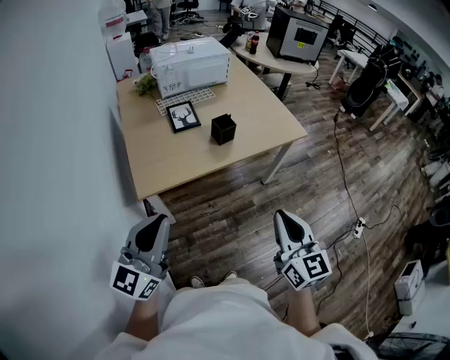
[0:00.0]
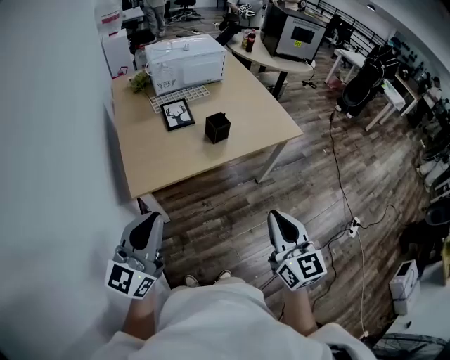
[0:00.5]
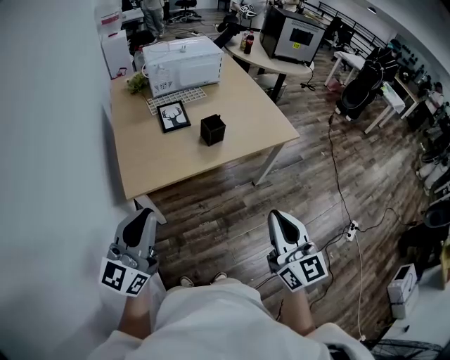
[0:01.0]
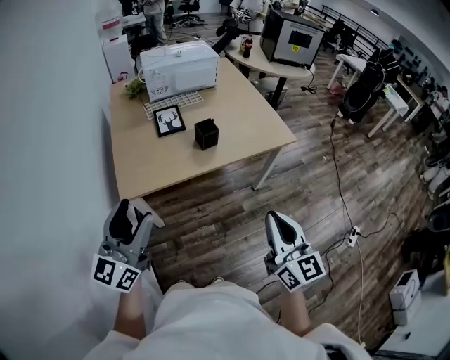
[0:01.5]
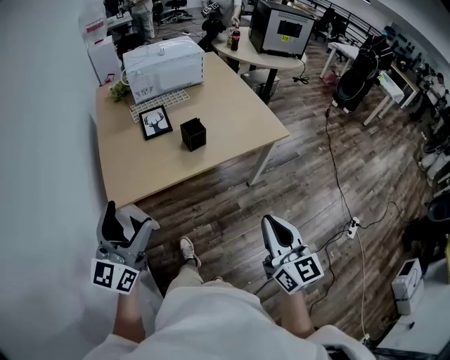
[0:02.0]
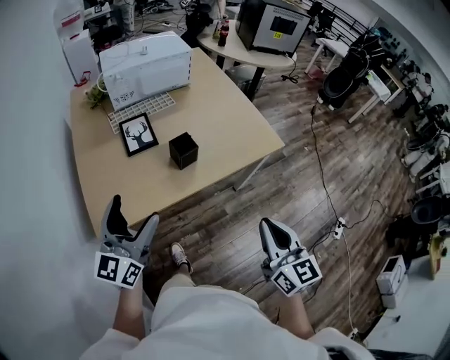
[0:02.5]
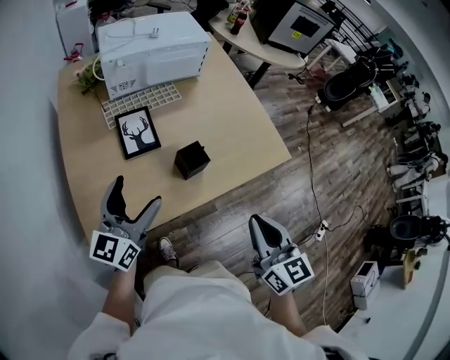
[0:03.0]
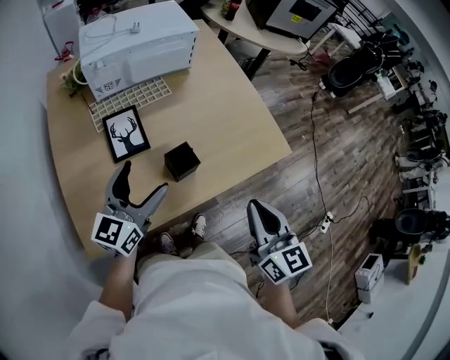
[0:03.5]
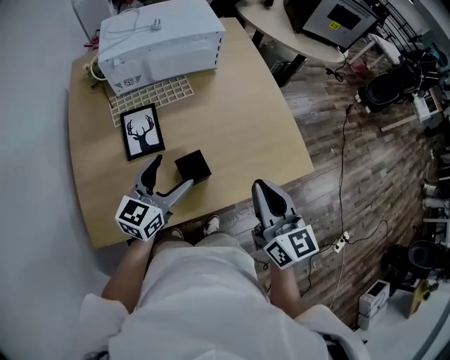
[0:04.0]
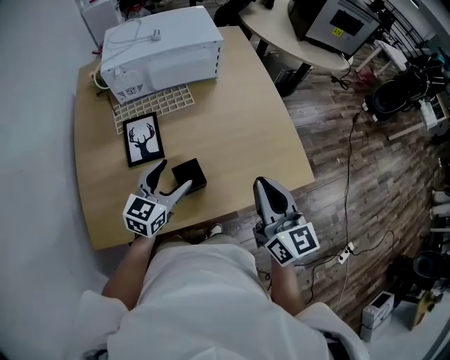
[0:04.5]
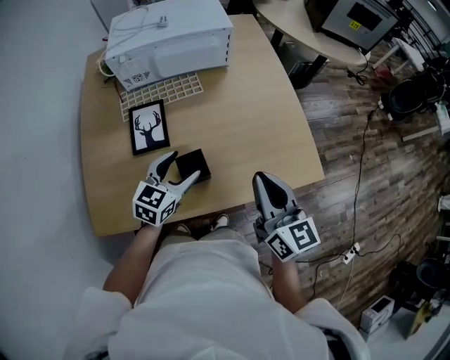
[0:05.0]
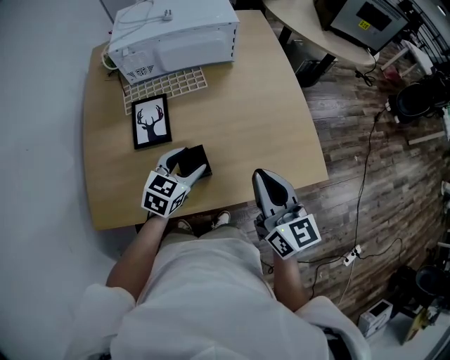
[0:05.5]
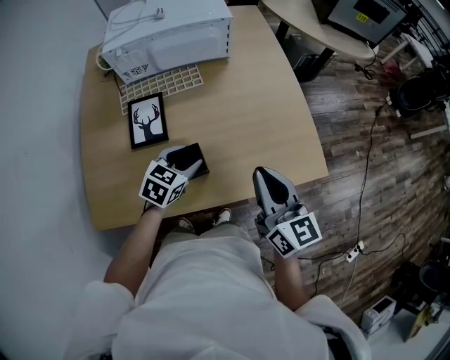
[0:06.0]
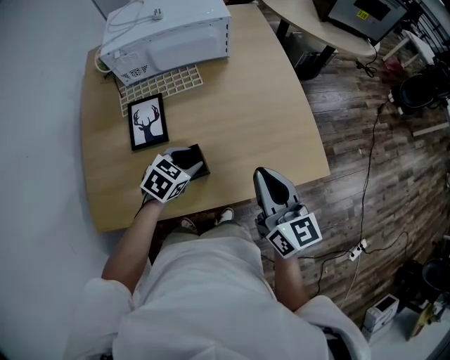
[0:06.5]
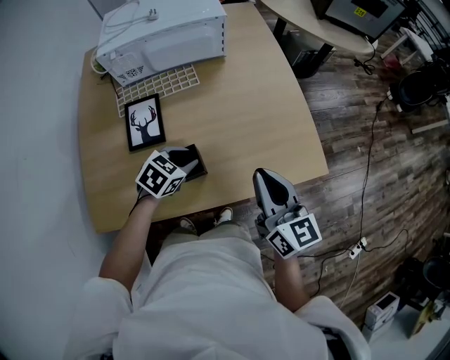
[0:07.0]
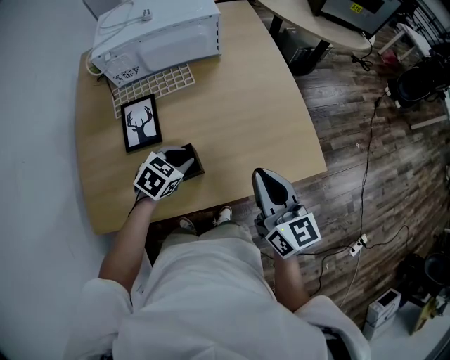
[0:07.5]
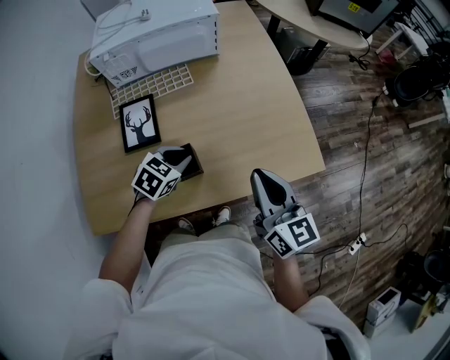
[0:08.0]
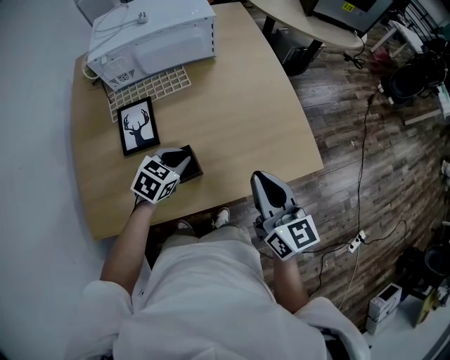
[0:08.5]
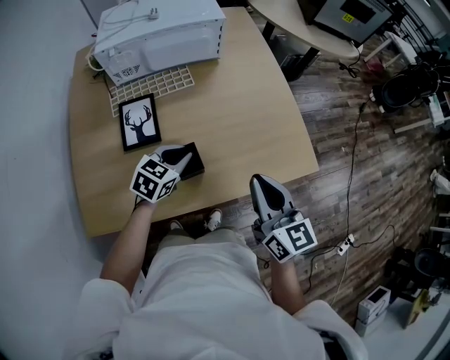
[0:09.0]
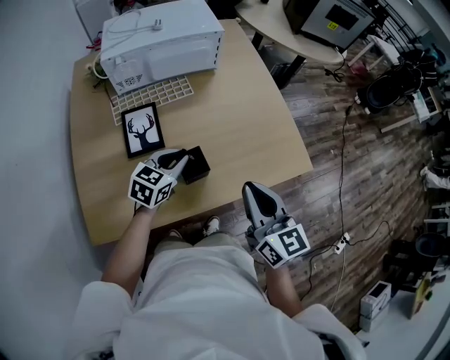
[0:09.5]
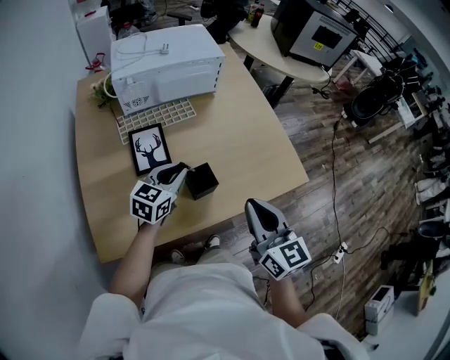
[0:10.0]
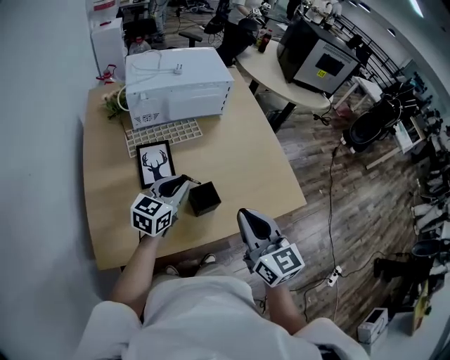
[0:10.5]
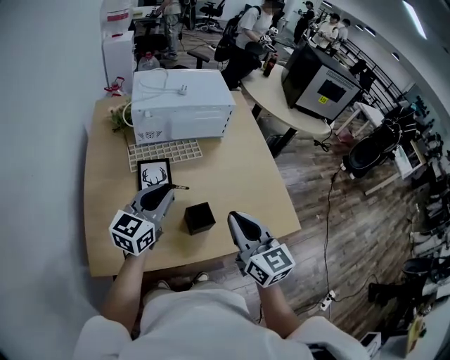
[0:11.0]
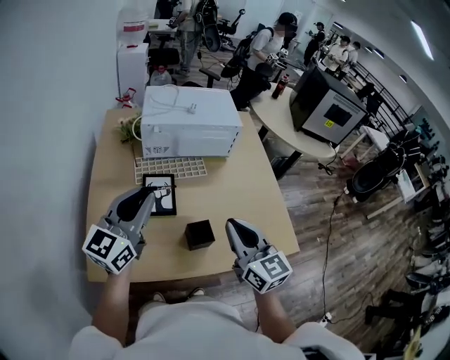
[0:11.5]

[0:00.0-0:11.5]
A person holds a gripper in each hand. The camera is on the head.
0:00.0 to 0:02.0: The left gripper travels forward by roughly 10 cm, and opens; the right gripper travels to the right by about 10 cm.
0:02.0 to 0:04.0: Both grippers are carried forward, roughly 40 cm. The left gripper changes its angle by some 20 degrees.
0:04.0 to 0:06.0: The left gripper travels downward and to the right by about 10 cm, points its fingers approximately 30 degrees further downward, and closes. The right gripper changes place by approximately 5 cm.
0:06.0 to 0:07.5: The grippers make only small movements.
0:07.5 to 0:09.5: The right gripper goes roughly 10 cm backward and to the left; the left gripper shifts roughly 5 cm upward, and turns by about 20 degrees.
0:09.5 to 0:11.5: The left gripper heads upward and to the left, covering about 30 cm, and points its fingers roughly 40 degrees further upward, while the right gripper moves to the left and upward, some 10 cm.

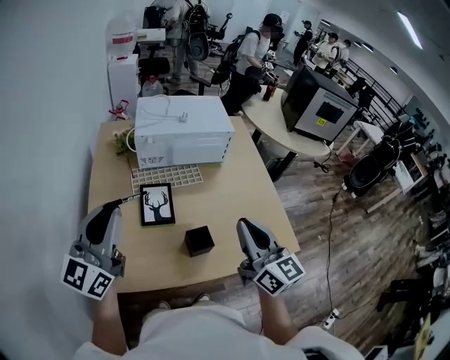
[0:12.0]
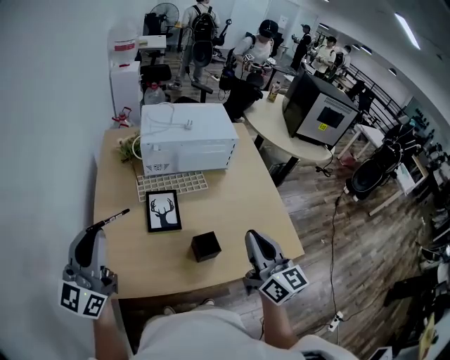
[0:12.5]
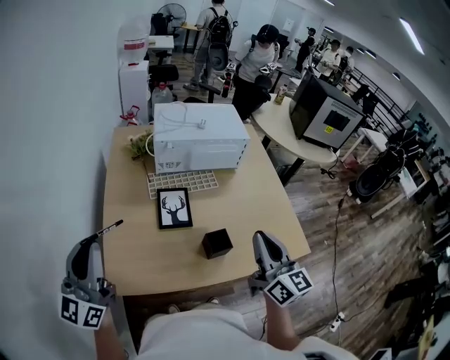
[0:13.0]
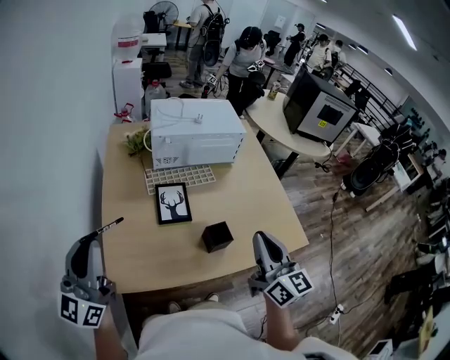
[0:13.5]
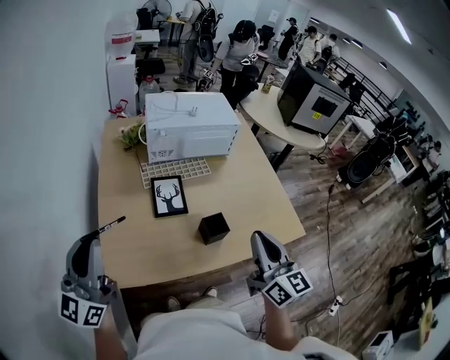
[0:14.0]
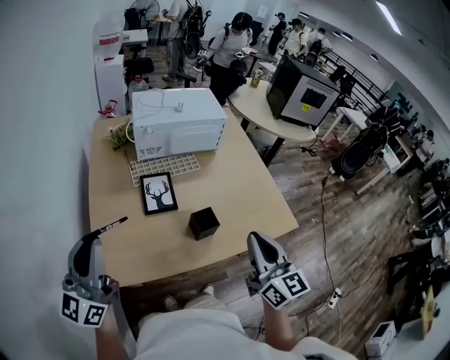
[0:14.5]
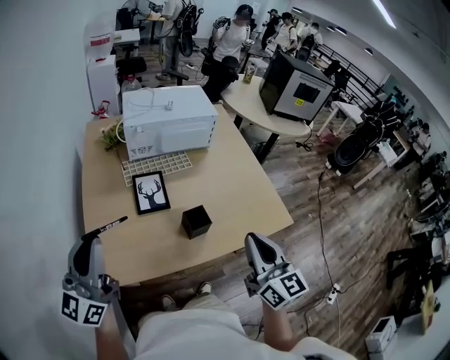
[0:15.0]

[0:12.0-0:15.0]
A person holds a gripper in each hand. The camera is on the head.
0:12.0 to 0:13.5: The right gripper moves backward, some 5 cm, while the left gripper shifts approximately 15 cm to the left and backward.
0:13.5 to 0:15.0: The left gripper travels to the right by some 5 cm. Meanwhile the right gripper travels backward by approximately 5 cm.

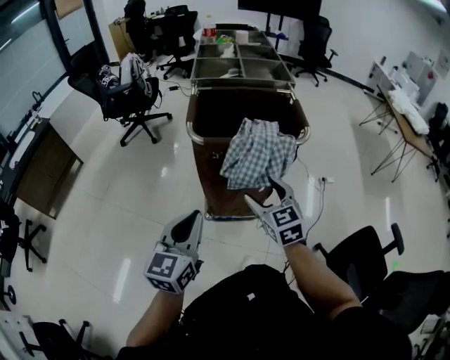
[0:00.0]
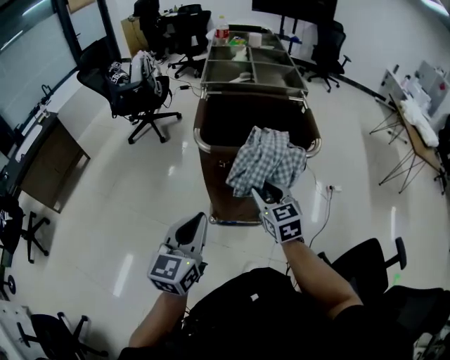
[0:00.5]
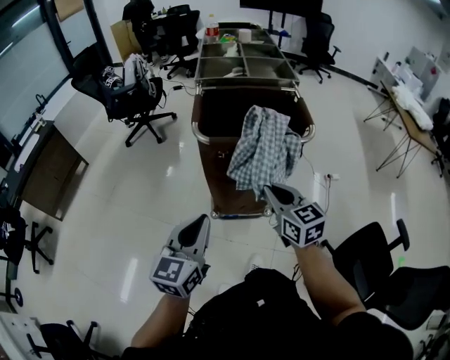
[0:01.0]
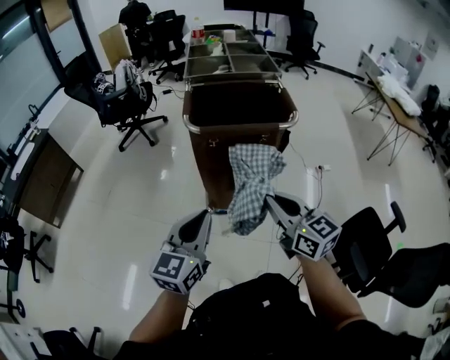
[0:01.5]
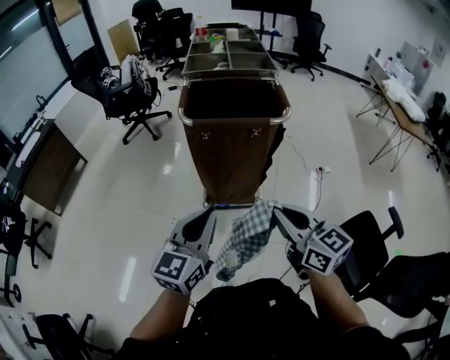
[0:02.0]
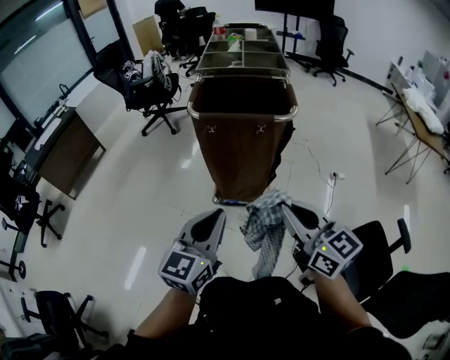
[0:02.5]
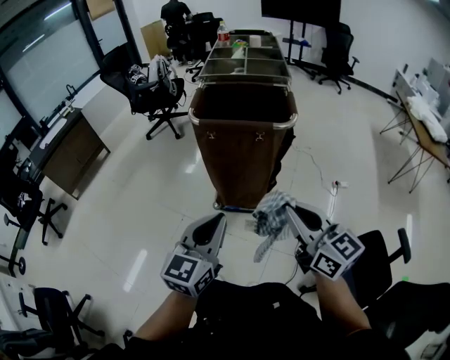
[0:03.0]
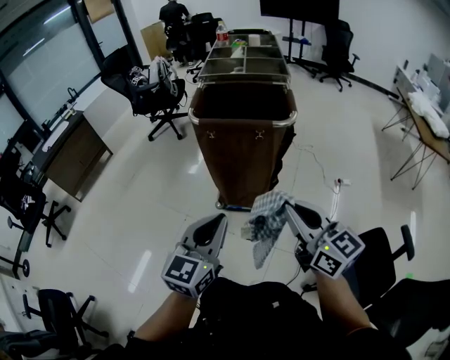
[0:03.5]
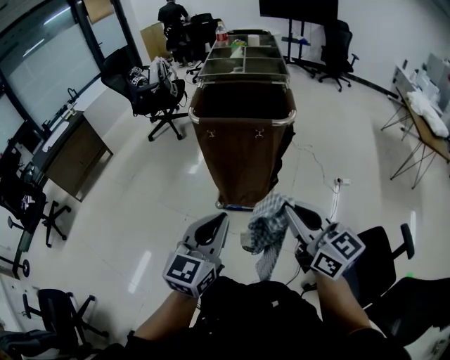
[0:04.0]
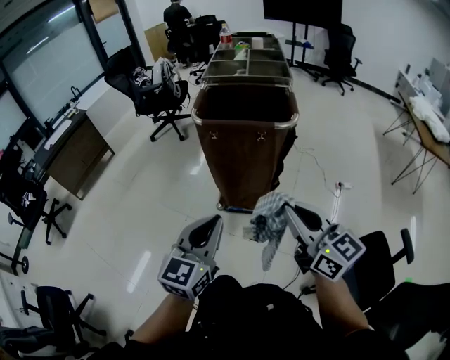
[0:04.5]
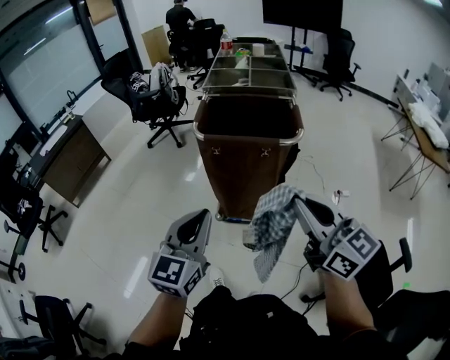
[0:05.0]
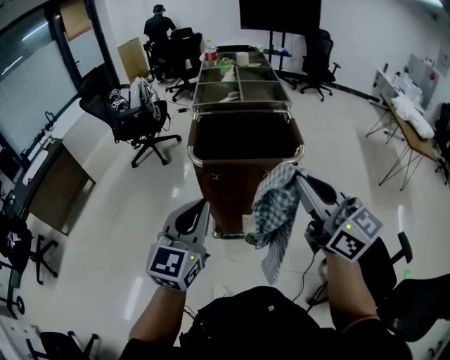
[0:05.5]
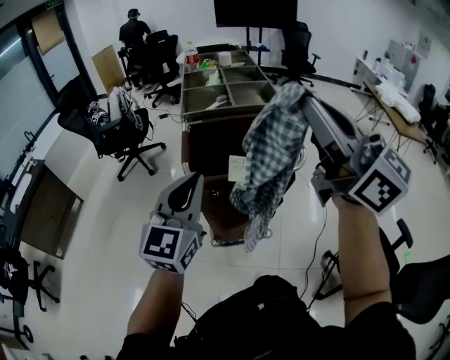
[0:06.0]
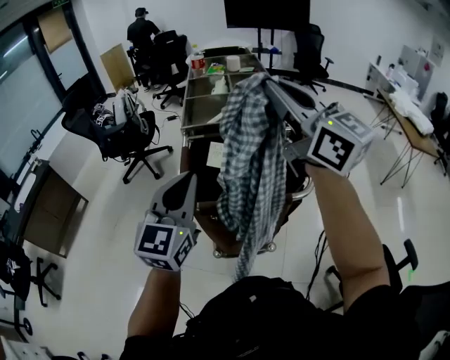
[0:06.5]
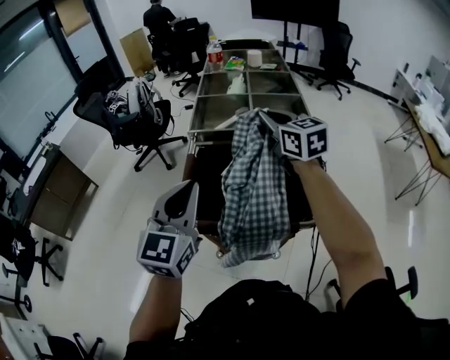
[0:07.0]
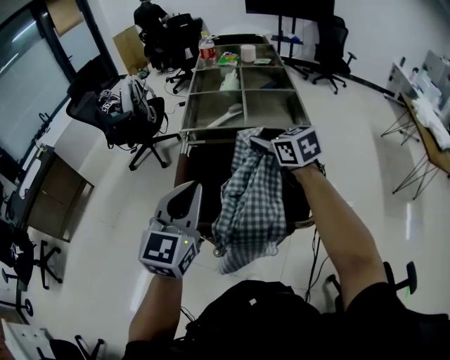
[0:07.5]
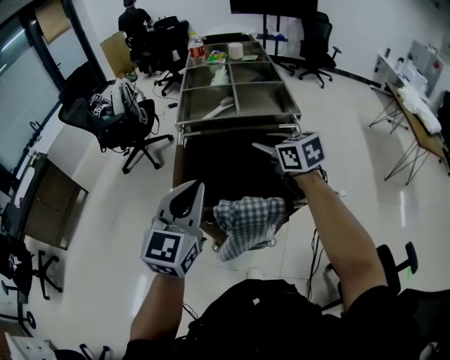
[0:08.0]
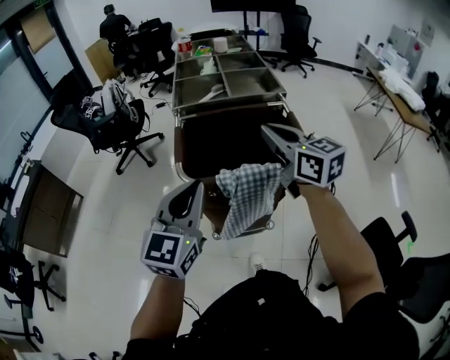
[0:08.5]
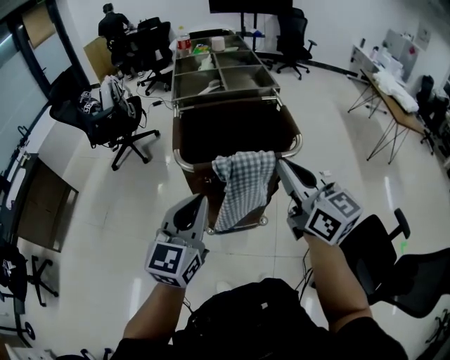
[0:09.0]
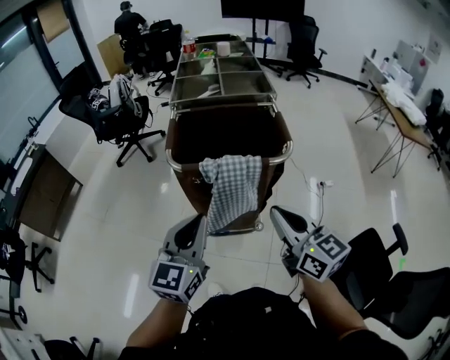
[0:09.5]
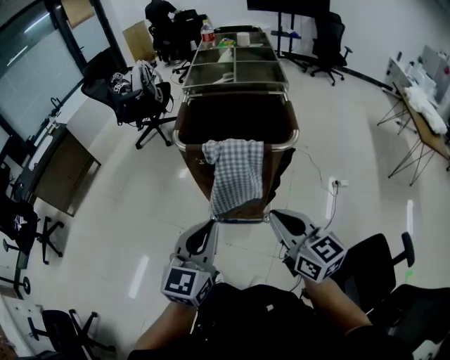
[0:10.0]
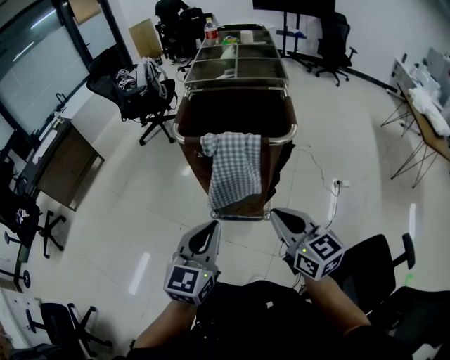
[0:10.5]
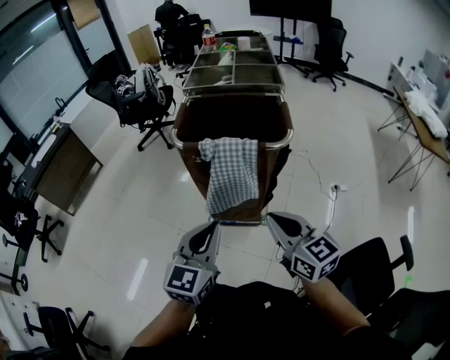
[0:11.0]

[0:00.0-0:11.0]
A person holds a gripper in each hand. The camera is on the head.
0:00.0 to 0:02.0: The left gripper moves backward and to the right, about 15 cm. Meanwhile the right gripper moves backward and upward, some 20 cm, rotates roughly 30 degrees, and closes.
0:02.0 to 0:03.5: Both grippers move to the right, some 5 cm.
0:03.5 to 0:05.5: The left gripper travels forward and to the left by roughly 20 cm; the right gripper moves forward and upward, approximately 20 cm.
0:05.5 to 0:07.5: The right gripper is displaced forward by roughly 40 cm, points its fingers roughly 30 degrees further downward, and opens its fingers, while the left gripper is displaced forward by approximately 25 cm.
0:07.5 to 0:09.0: The right gripper shifts some 35 cm backward, changes its angle by approximately 30 degrees, and closes; the left gripper travels backward by about 20 cm.
0:09.0 to 0:11.0: The right gripper goes roughly 20 cm backward and downward, and rotates some 20 degrees. The left gripper heads backward, to the right and downward, covering about 20 cm.

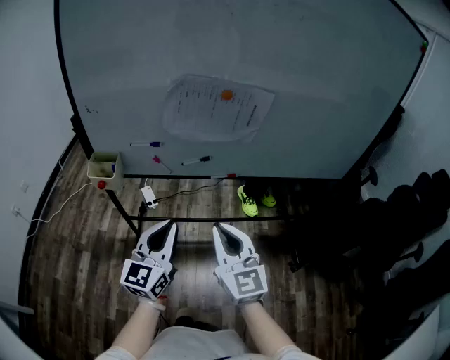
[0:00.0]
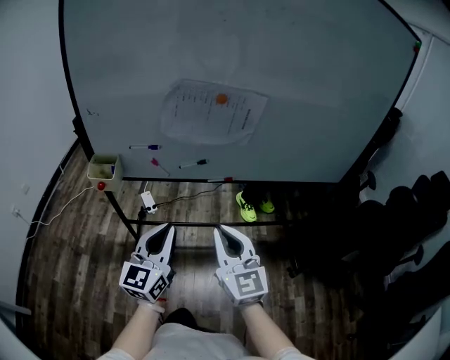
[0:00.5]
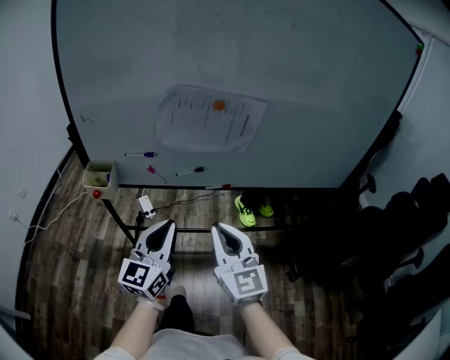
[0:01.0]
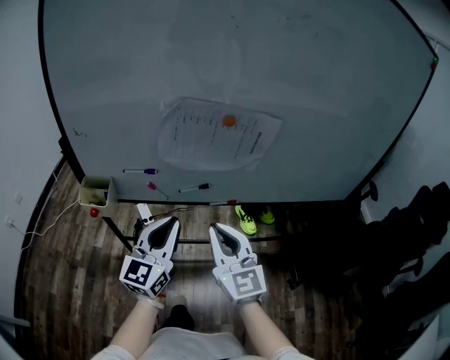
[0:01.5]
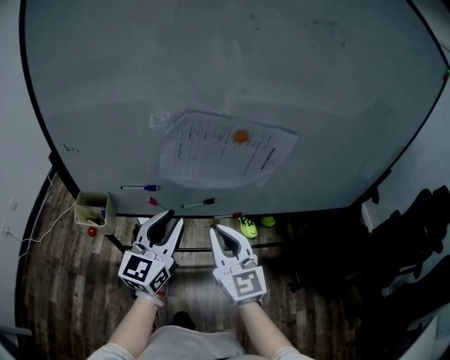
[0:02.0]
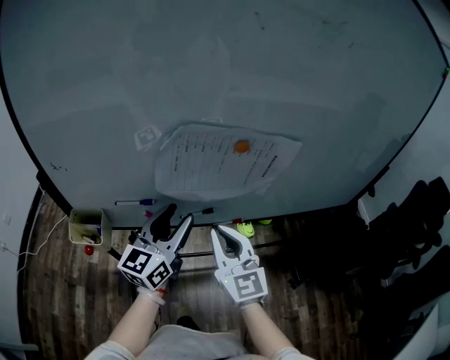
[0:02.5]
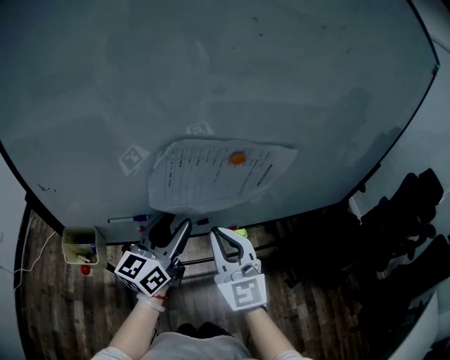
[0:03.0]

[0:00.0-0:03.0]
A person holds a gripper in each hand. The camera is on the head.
0:00.0 to 0:01.5: The grippers both shift forward by about 10 cm.
0:01.5 to 0:03.0: Both grippers move forward, some 15 cm. The left gripper swivels roughly 20 degrees, and opens up.
